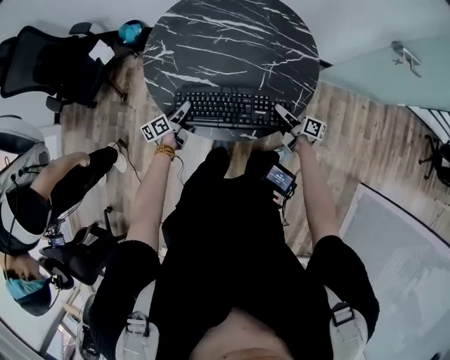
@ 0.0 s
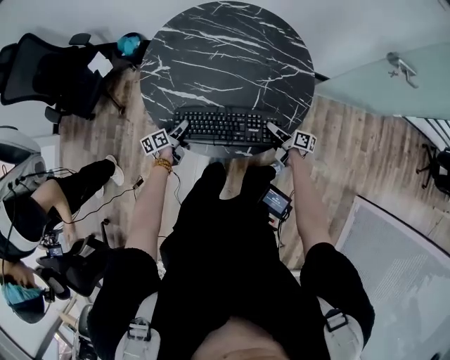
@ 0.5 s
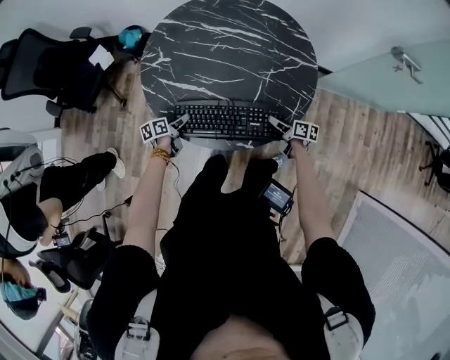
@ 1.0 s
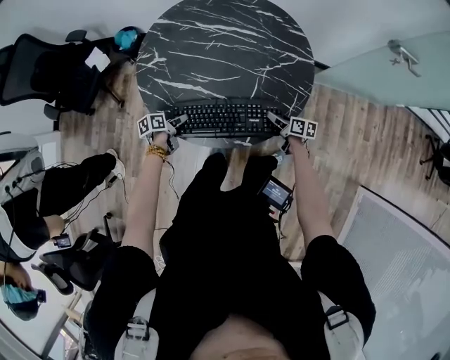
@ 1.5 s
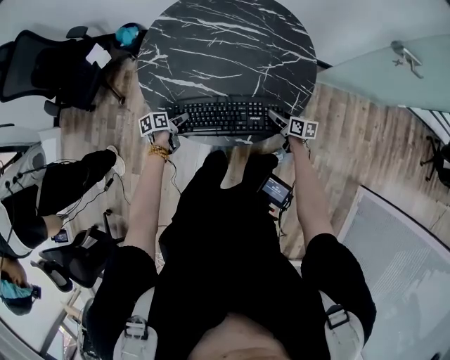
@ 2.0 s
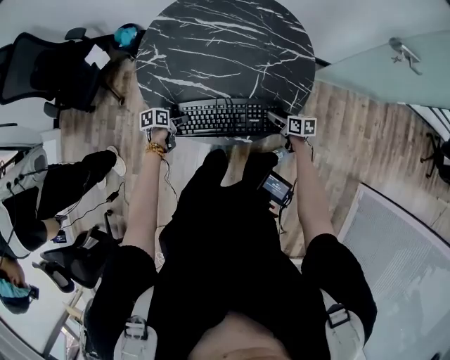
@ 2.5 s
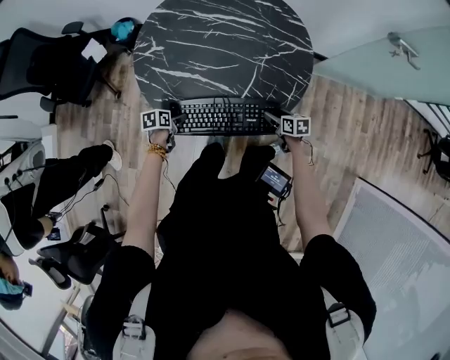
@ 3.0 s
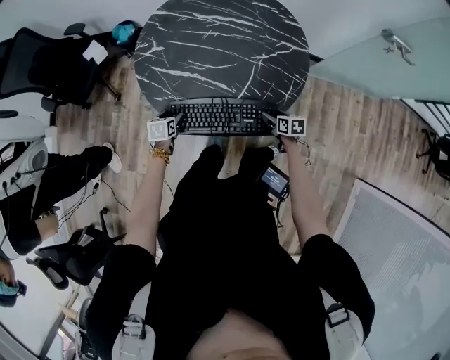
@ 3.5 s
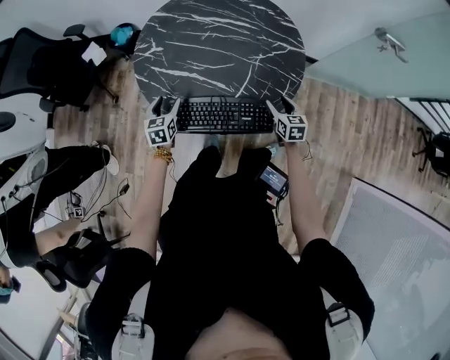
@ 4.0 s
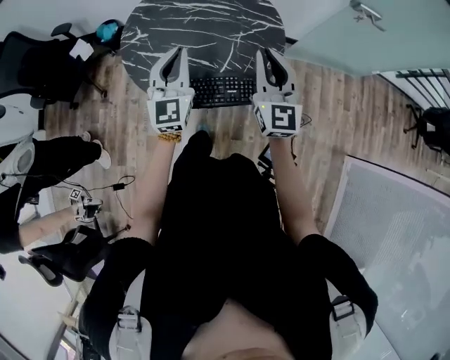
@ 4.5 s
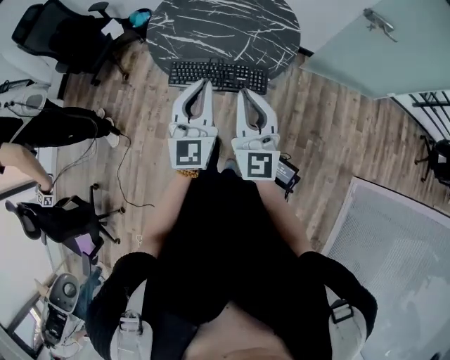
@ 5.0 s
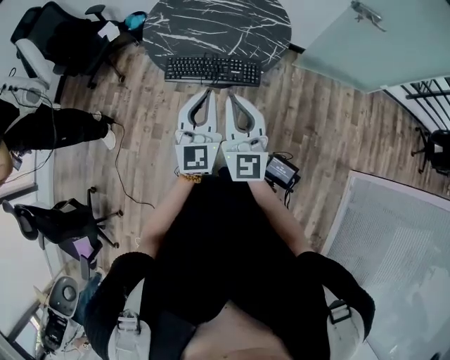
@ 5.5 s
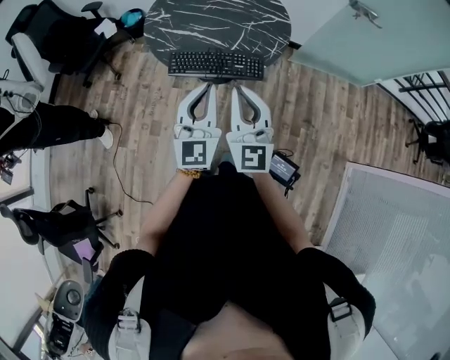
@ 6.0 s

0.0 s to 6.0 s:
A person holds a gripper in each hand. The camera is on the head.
0.0 to 2.0 s: Both grippers move downward, some 5 cm. The left gripper changes its angle by approximately 30 degrees, while the right gripper rotates about 30 degrees, and opens up.
2.0 to 4.0 s: The two grippers go approximately 10 cm upward. The right gripper changes its angle by approximately 30 degrees; the left gripper changes its angle by about 50 degrees.
4.0 to 6.0 s: The left gripper goes approximately 50 cm backward, upward and to the right, tilts its fingers some 40 degrees upward, and closes its fingers. The right gripper shifts approximately 50 cm upward, backward and to the left, angles its fingers upward, by approximately 40 degrees, and closes up.

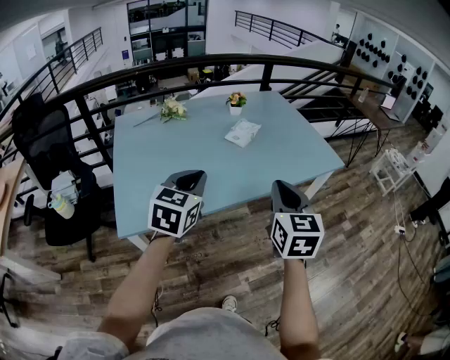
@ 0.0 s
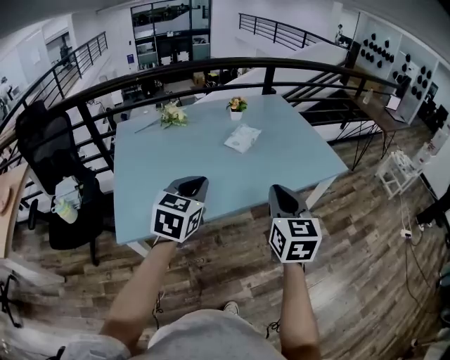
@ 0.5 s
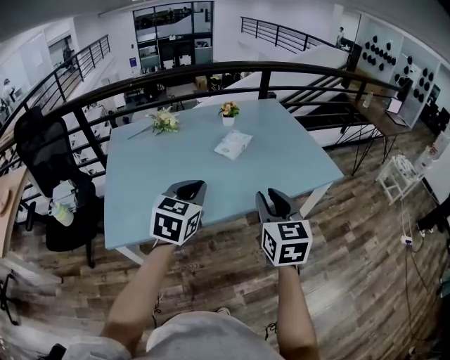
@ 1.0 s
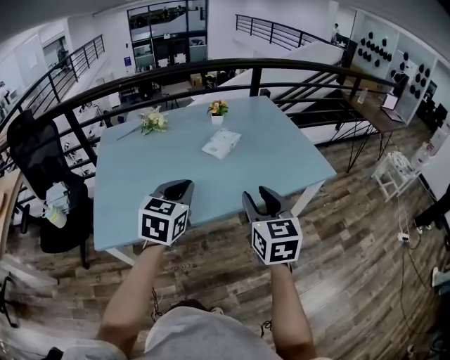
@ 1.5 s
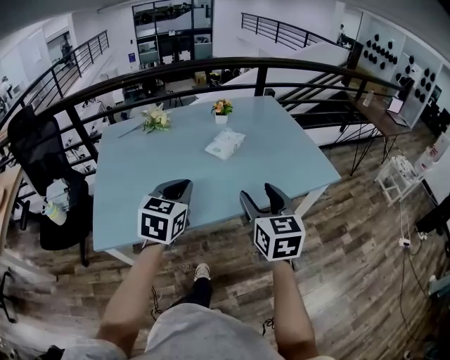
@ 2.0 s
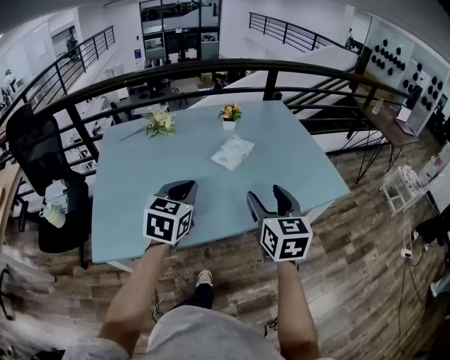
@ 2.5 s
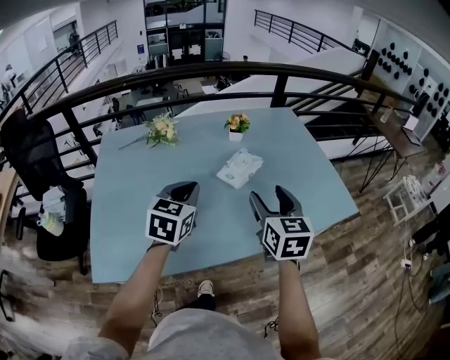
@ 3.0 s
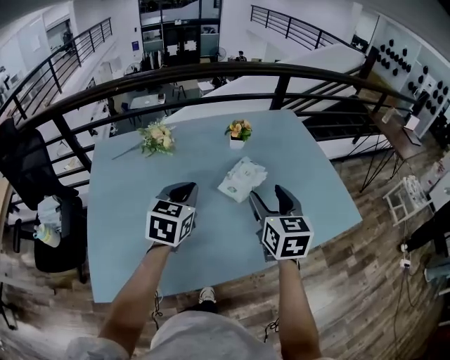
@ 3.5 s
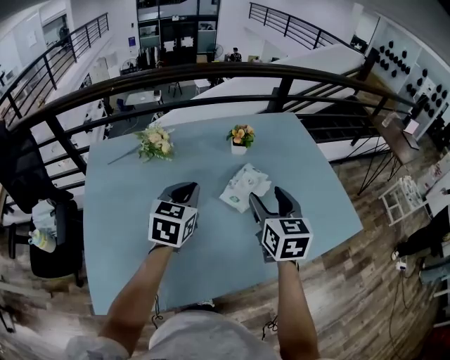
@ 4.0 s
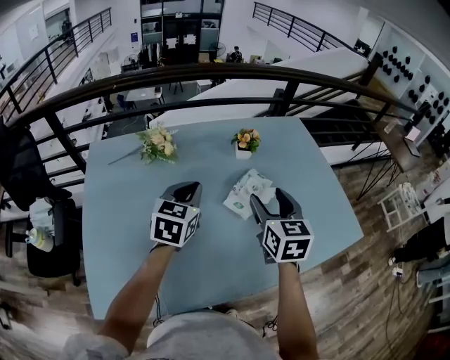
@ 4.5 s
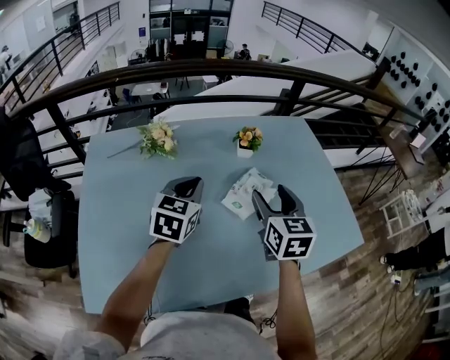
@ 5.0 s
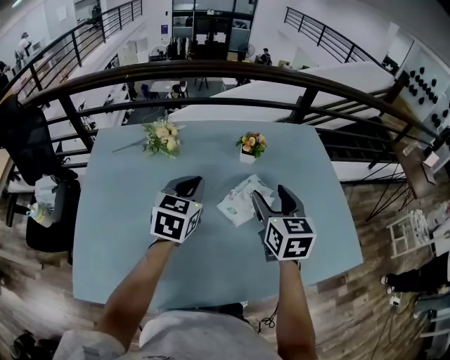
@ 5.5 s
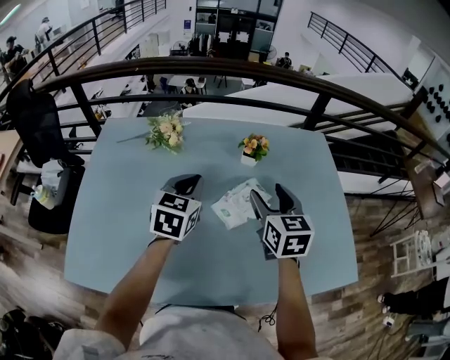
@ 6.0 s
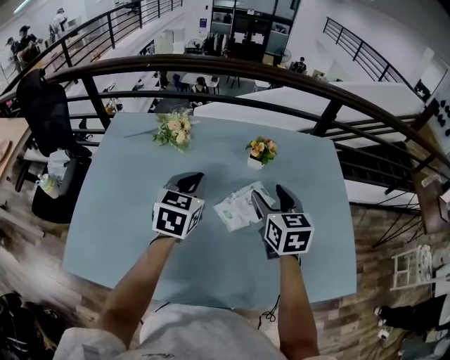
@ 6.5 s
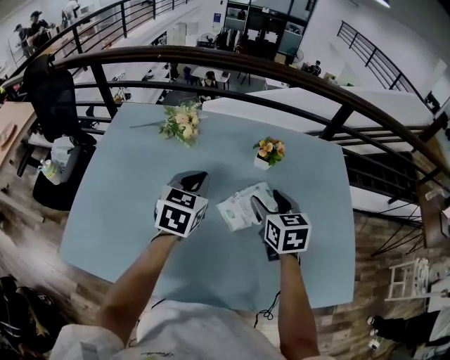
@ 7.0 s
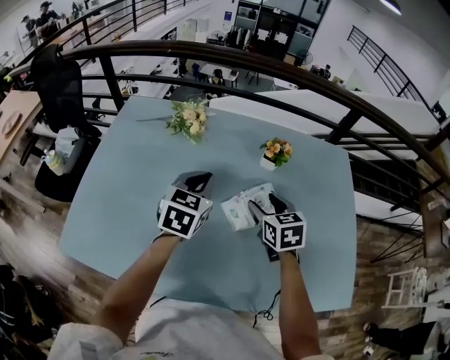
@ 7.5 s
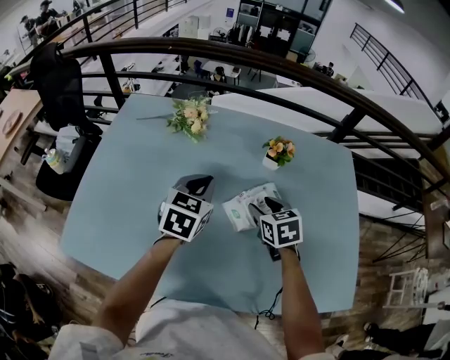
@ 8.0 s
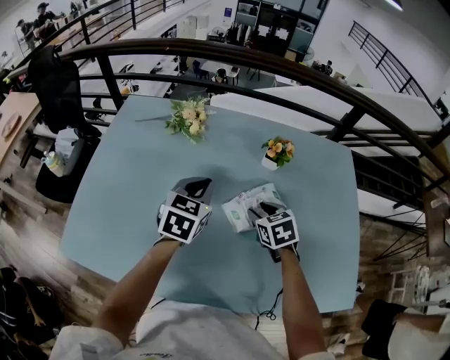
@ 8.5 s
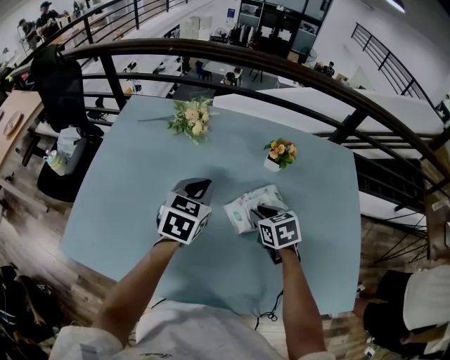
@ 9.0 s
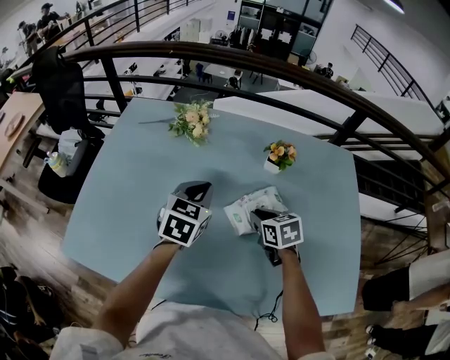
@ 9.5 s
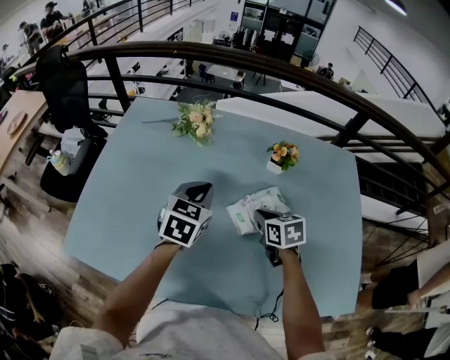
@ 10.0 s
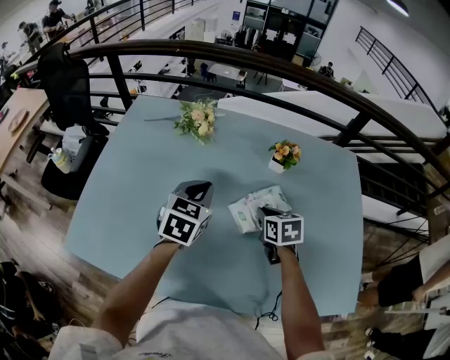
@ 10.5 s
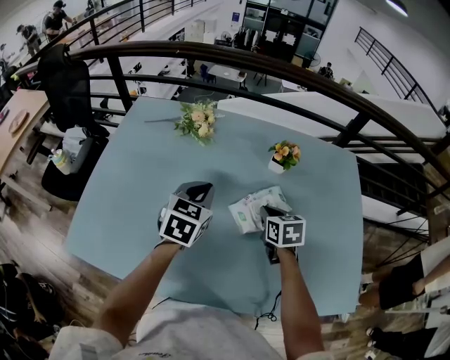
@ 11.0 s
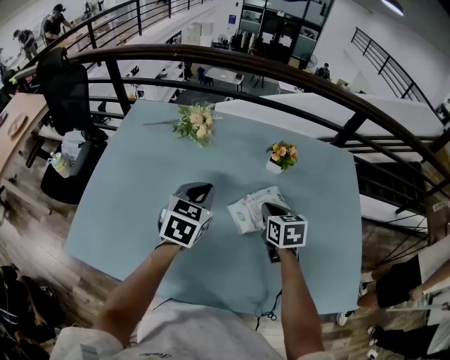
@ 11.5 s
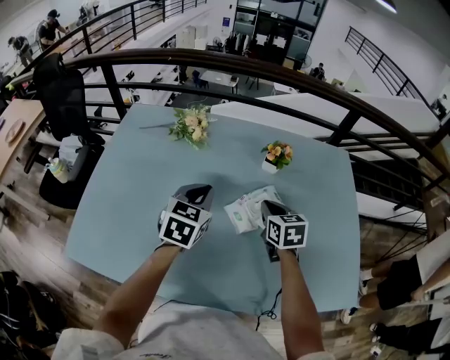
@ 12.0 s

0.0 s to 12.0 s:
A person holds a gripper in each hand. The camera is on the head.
0.0 to 2.0 s: The left gripper is displaced to the right and forward by about 10 cm; the right gripper is displaced forward and to the right by about 10 cm, and opens up.
2.0 to 4.0 s: Both grippers travel together forward, approximately 30 cm.
4.0 to 6.0 s: The left gripper moves forward, some 5 cm. The right gripper shifts some 10 cm forward.
6.0 to 8.0 s: The right gripper moves downward, approximately 15 cm, and turns by about 30 degrees.
8.0 to 10.0 s: The right gripper closes its fingers.
10.0 to 12.0 s: The right gripper ends up roughly 5 cm from where it was.

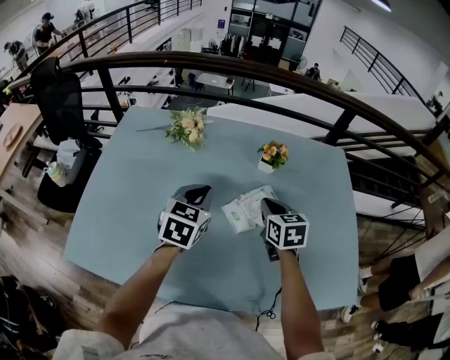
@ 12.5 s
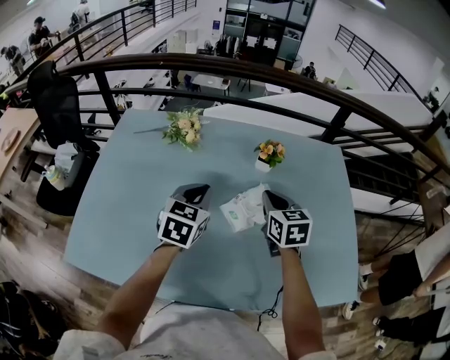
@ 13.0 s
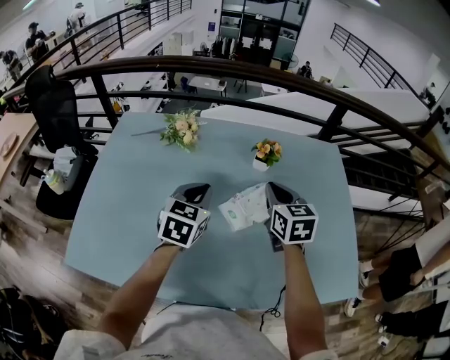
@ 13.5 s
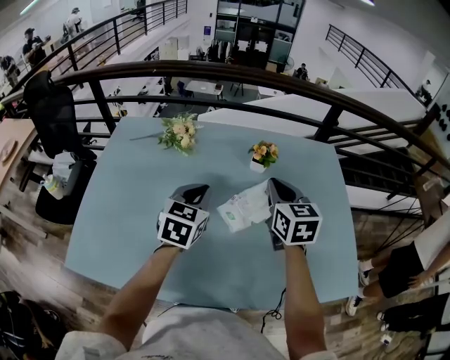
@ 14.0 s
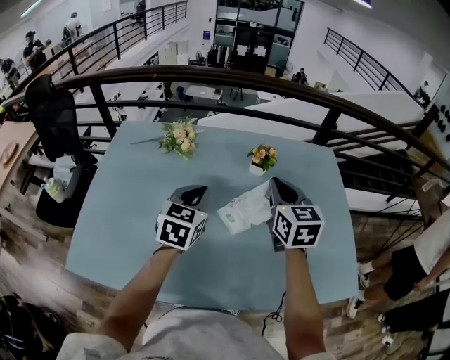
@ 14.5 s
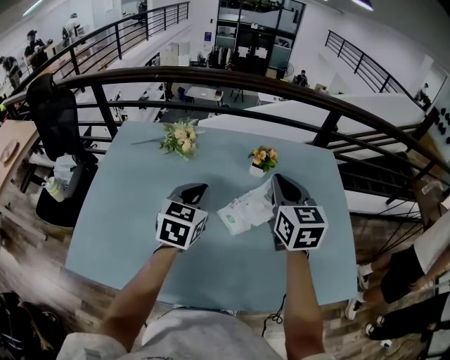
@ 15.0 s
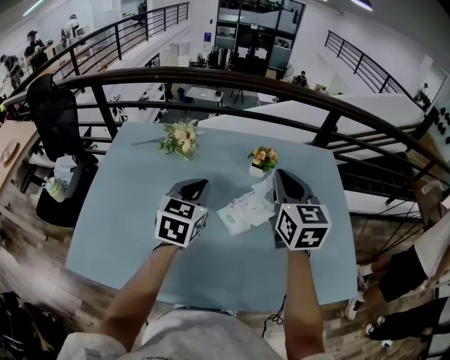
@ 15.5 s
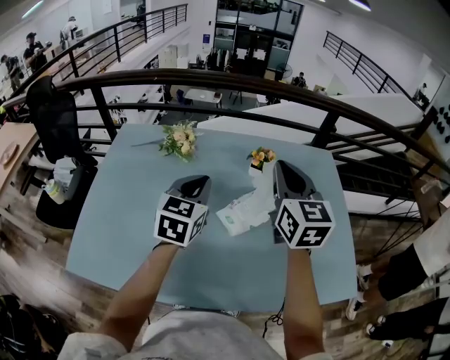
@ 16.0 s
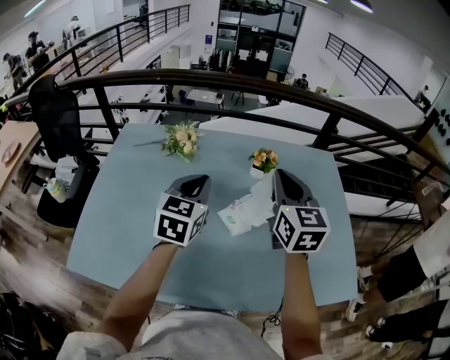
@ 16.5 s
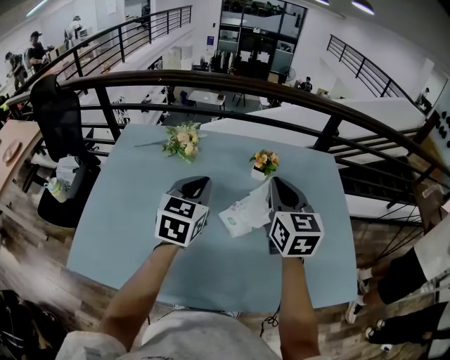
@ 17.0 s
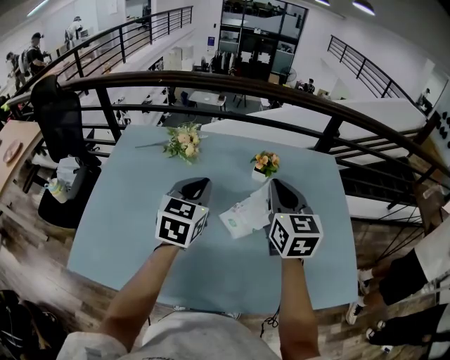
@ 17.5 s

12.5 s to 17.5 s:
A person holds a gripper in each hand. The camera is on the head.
12.5 to 15.0 s: The right gripper travels upward by some 15 cm, and turns by roughly 20 degrees.
15.0 to 17.5 s: There are only small adjustments of the grippers.

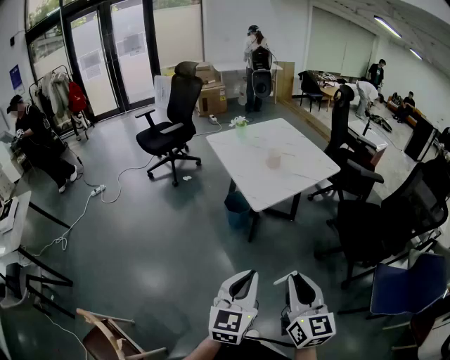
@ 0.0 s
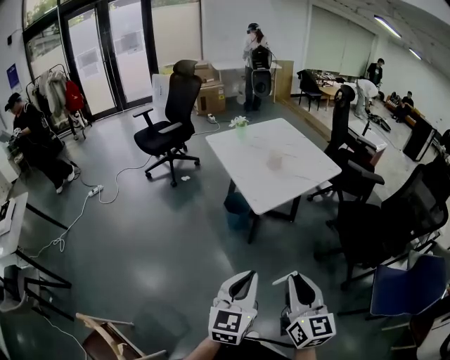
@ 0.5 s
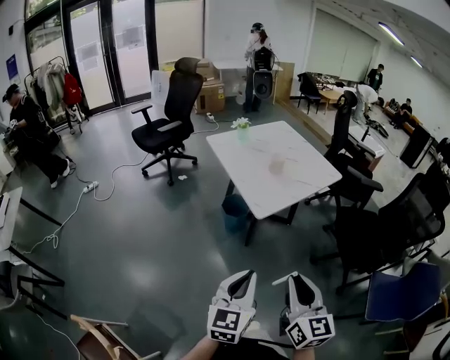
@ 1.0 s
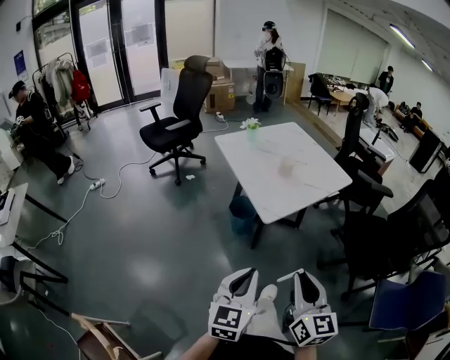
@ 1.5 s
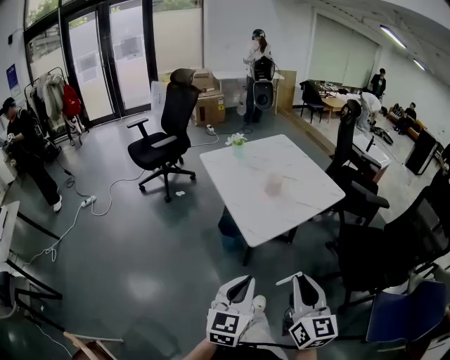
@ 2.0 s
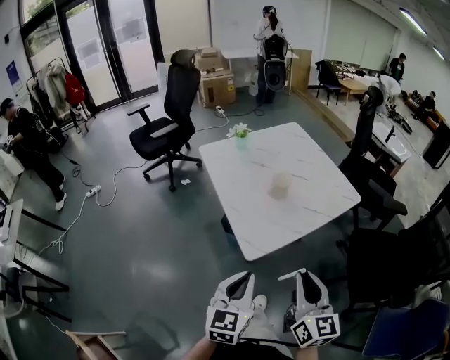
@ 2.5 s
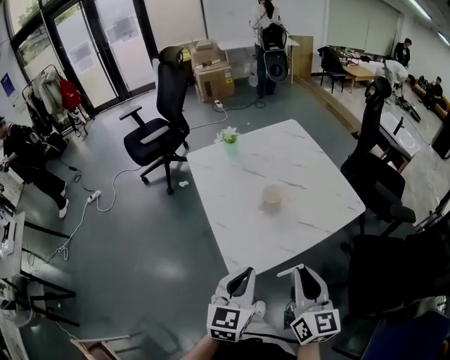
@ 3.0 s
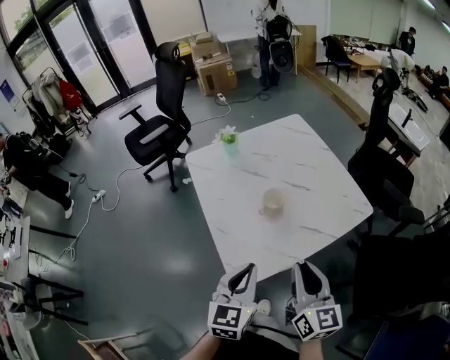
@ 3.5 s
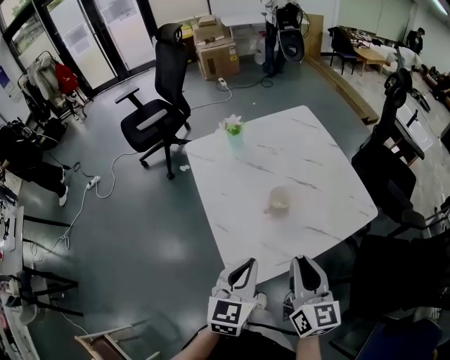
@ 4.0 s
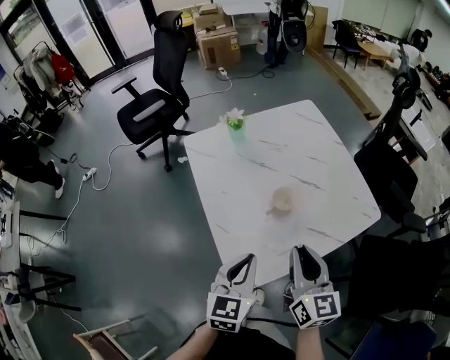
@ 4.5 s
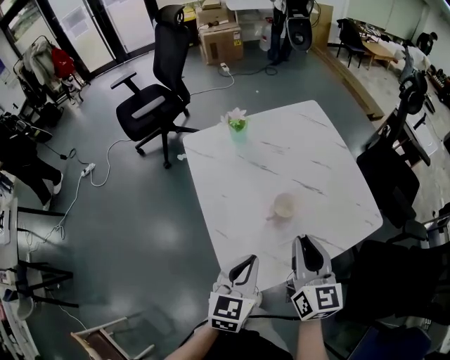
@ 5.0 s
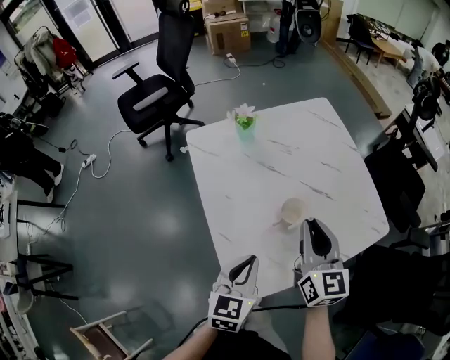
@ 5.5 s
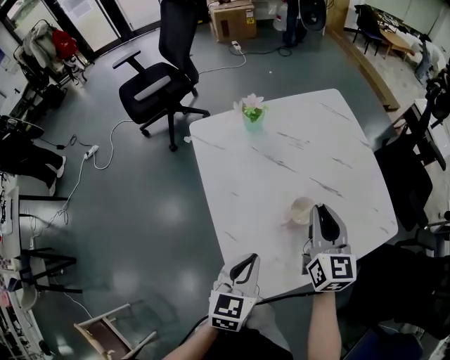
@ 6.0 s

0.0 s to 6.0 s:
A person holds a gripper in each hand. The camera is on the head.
0.0 to 2.0 s: Both grippers travel together forward, some 15 cm.
2.0 to 4.0 s: Both grippers move forward, about 35 cm.
4.0 to 6.0 s: The right gripper heads forward, covering roughly 20 cm; the left gripper is displaced forward and downward by some 10 cm.
